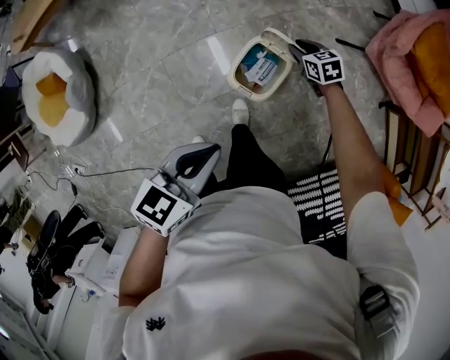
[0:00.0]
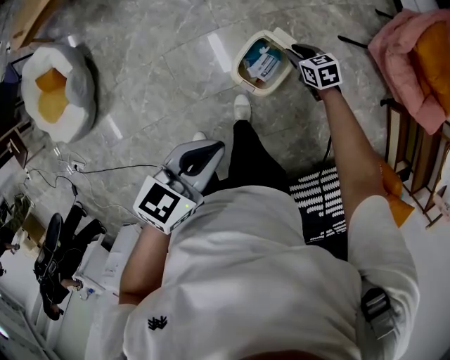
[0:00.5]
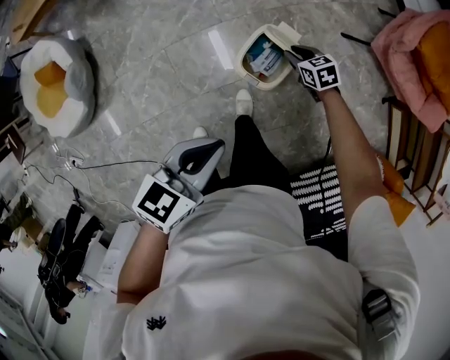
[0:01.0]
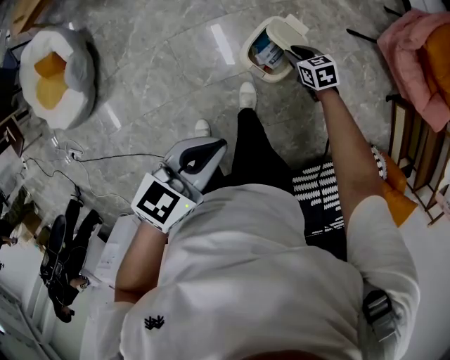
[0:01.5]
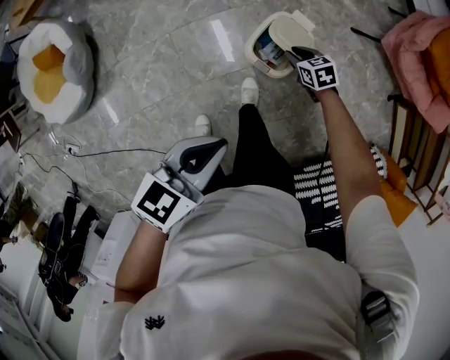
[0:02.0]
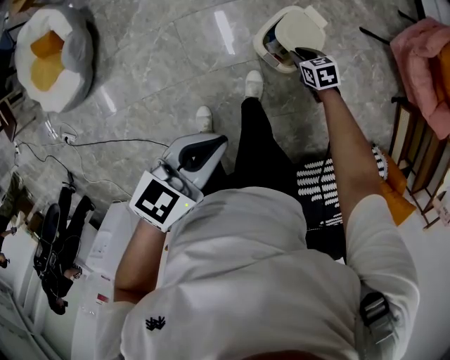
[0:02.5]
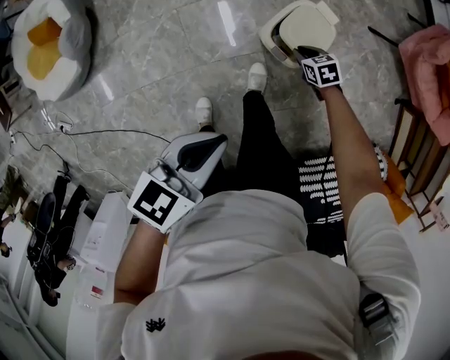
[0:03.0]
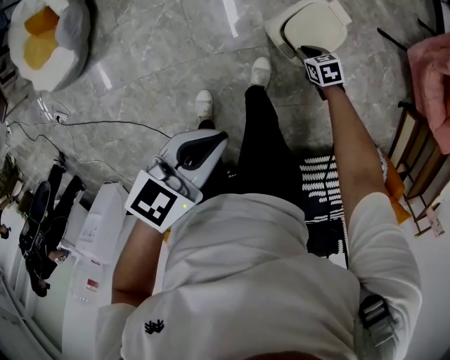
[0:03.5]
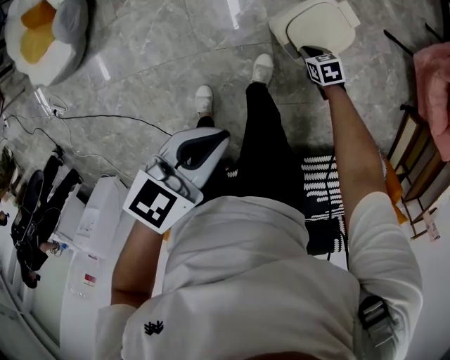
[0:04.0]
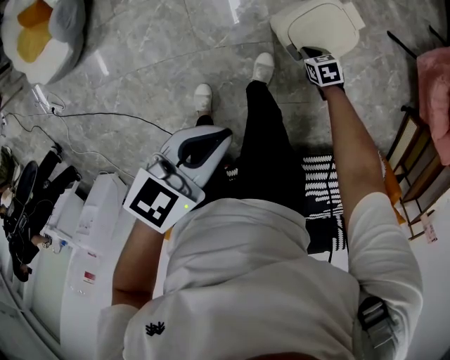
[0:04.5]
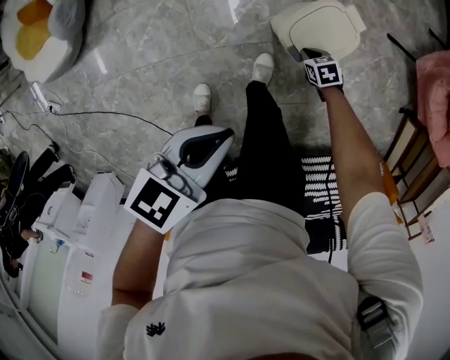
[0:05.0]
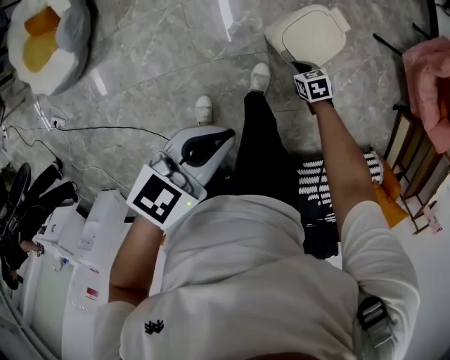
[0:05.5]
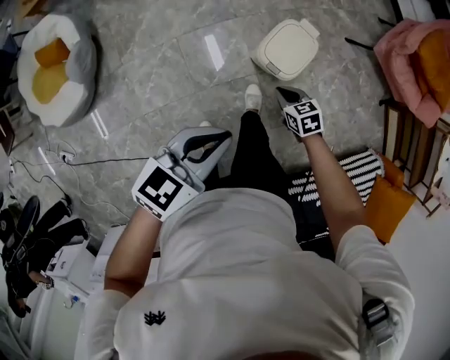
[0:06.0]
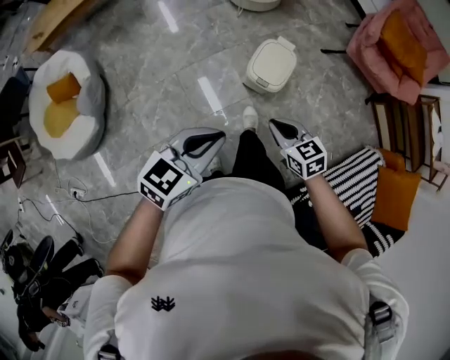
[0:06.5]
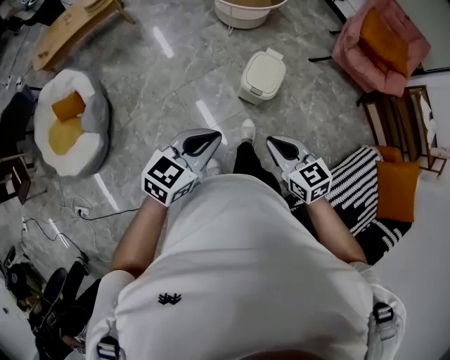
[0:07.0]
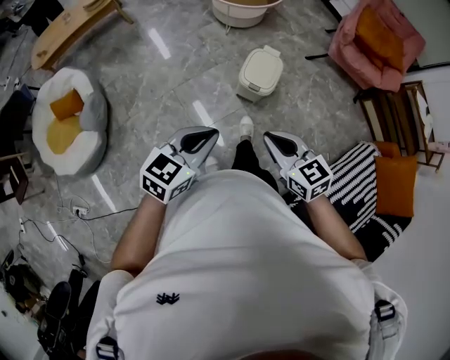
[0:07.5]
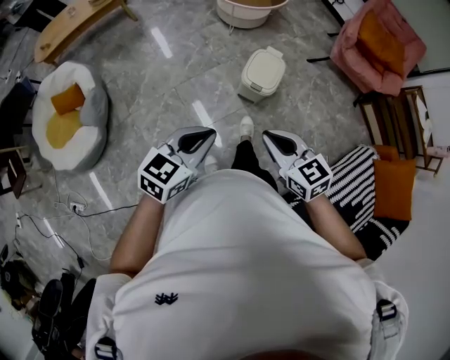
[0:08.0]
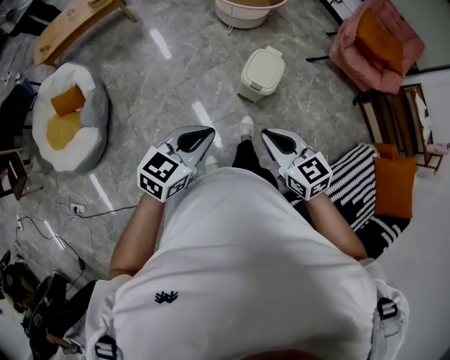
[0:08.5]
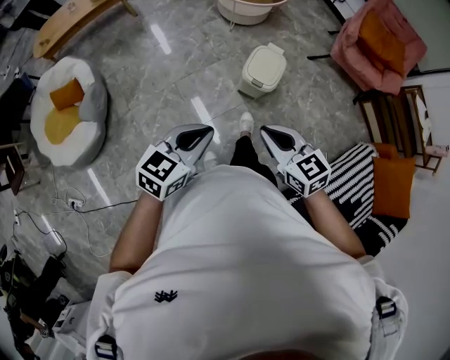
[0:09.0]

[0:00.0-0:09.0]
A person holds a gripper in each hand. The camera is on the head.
0:00.0 to 0:02.0: The right gripper heads backward and to the left, covering roughly 15 cm, while the left gripper moves backward, roughly 10 cm.
0:02.0 to 0:04.5: The right gripper moves downward, roughly 15 cm, and closes. The left gripper moves downward, approximately 10 cm.
0:04.5 to 0:07.0: The left gripper goes about 20 cm upward, and turns by some 40 degrees, while the right gripper is displaced upward by approximately 50 cm, and points its fingers some 40 degrees further upward.
0:07.0 to 0:09.0: The left gripper moves roughly 5 cm; the right gripper ends up approximately 5 cm from where it was.

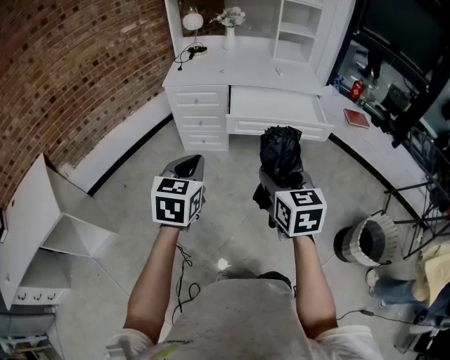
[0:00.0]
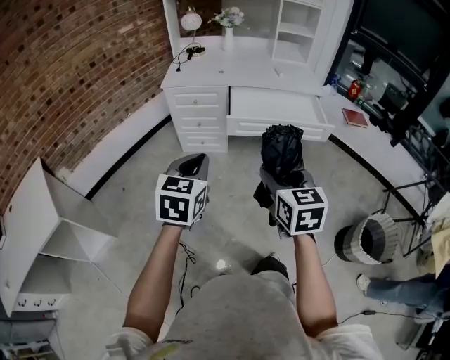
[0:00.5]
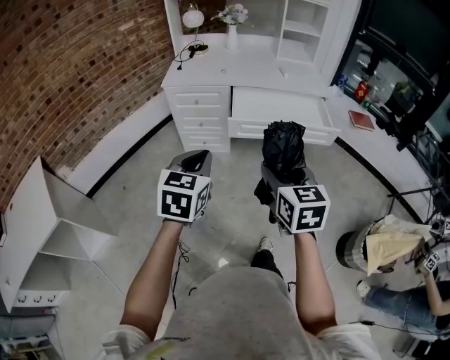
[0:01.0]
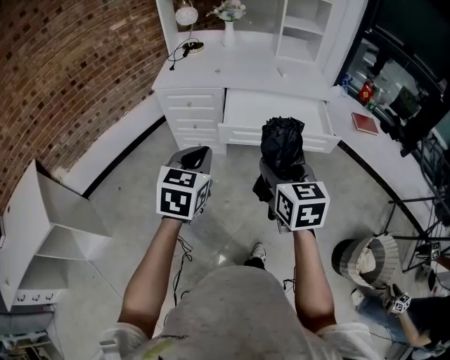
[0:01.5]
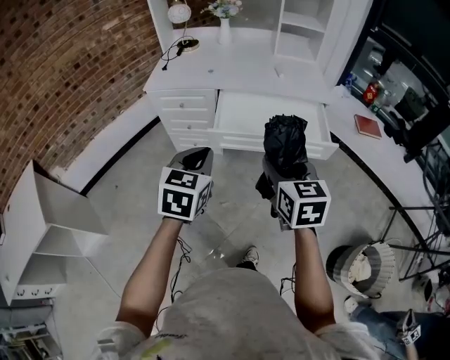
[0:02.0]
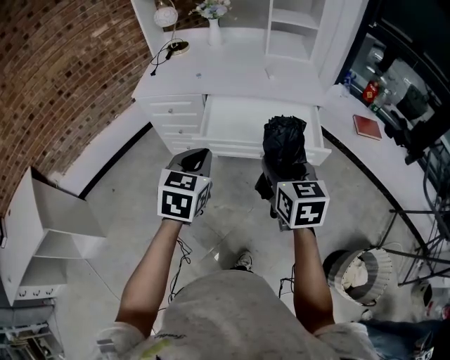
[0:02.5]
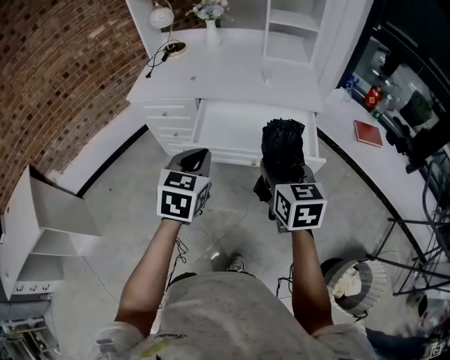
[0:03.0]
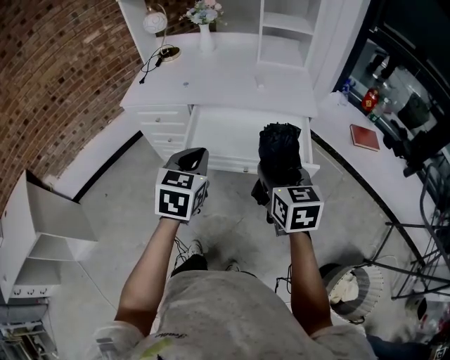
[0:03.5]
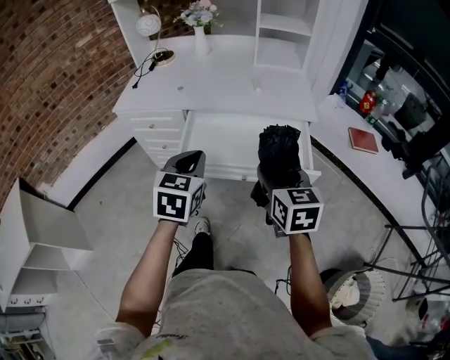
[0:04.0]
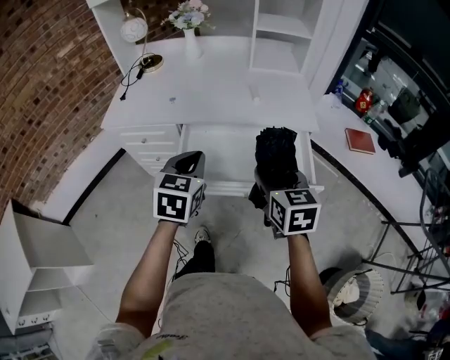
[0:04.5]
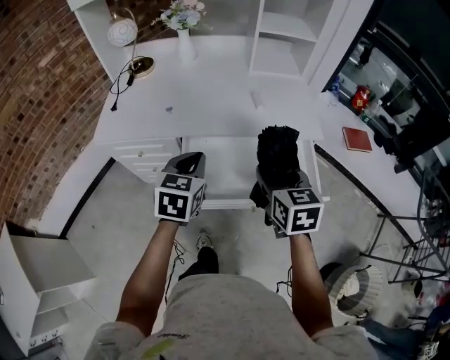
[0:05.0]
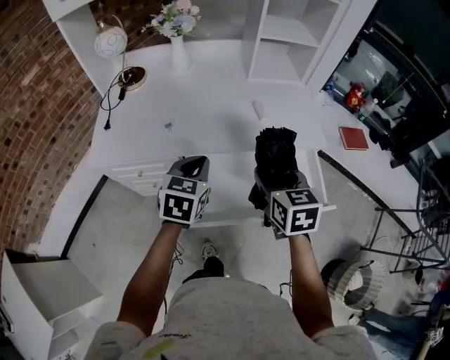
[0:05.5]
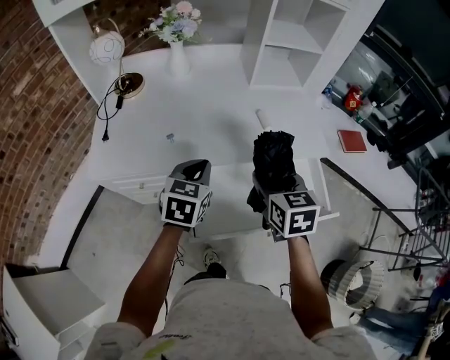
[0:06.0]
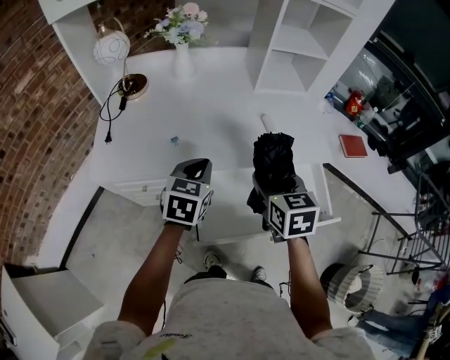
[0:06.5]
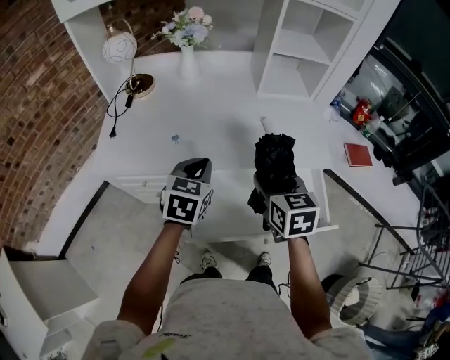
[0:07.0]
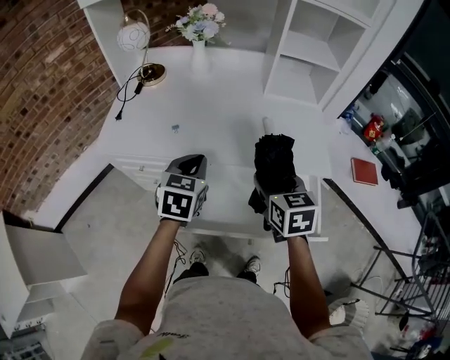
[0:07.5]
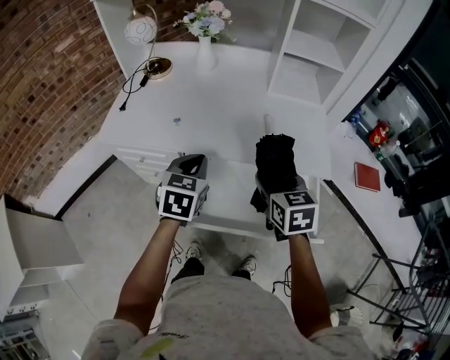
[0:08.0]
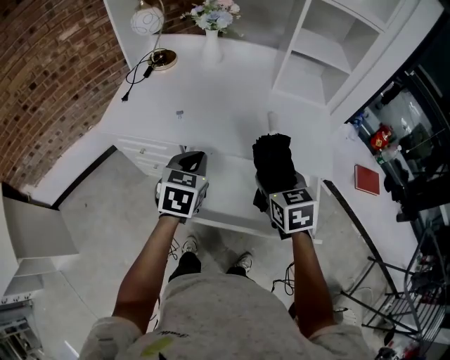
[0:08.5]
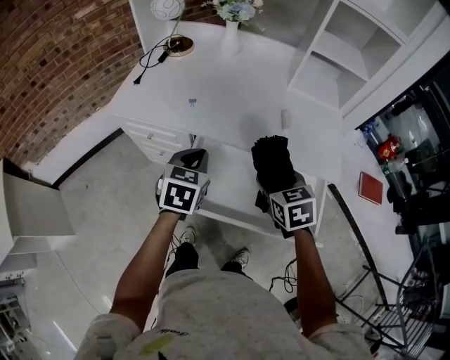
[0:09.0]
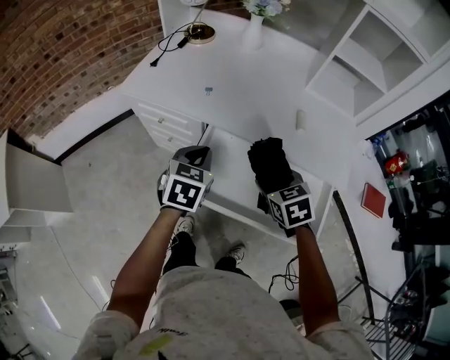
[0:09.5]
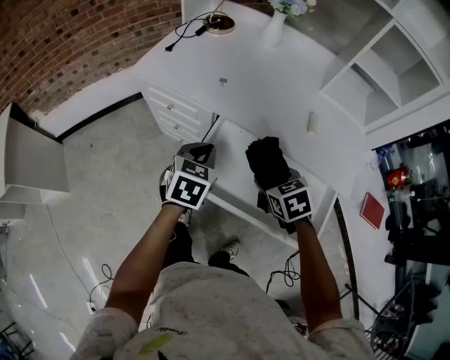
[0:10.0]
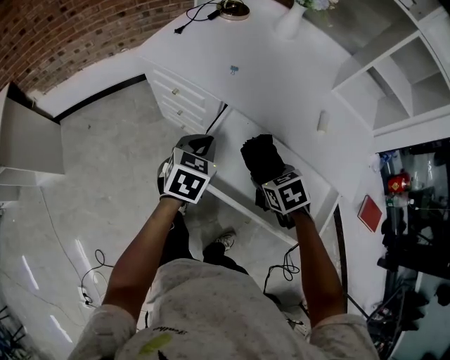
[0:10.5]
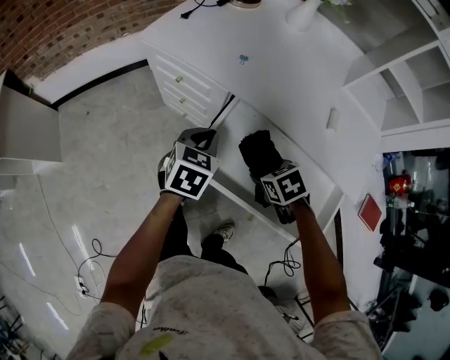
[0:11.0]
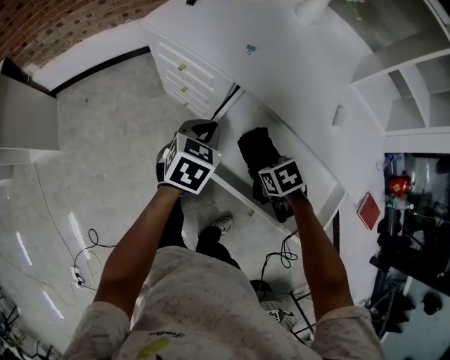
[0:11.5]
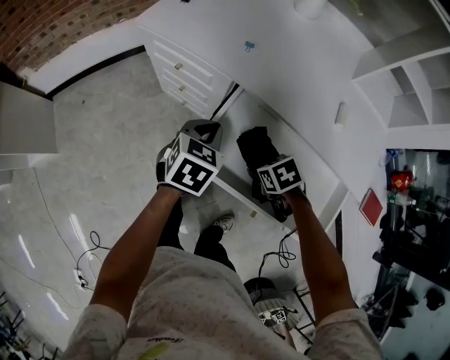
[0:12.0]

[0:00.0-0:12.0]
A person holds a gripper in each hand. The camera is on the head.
0:00.0 to 0:02.0: The grippers both shift forward and to the right by some 20 cm.
0:02.0 to 0:04.0: The right gripper shifts some 20 cm forward, to the right and downward. Meanwhile the left gripper heads forward and to the right, covering roughly 20 cm.
0:04.0 to 0:06.0: The left gripper is displaced forward by roughly 30 cm. Meanwhile the right gripper heads forward and to the left, covering some 30 cm.
0:06.0 to 0:08.0: The right gripper goes roughly 5 cm to the right; the left gripper changes place by about 5 cm.
0:08.0 to 0:10.0: The right gripper moves downward and to the left, roughly 15 cm, and turns by roughly 40 degrees; the left gripper moves to the left and downward, about 10 cm.
0:10.0 to 0:12.0: The left gripper shifts about 5 cm downward. Meanwhile the right gripper heads downward, covering some 15 cm, and changes its angle by roughly 20 degrees.

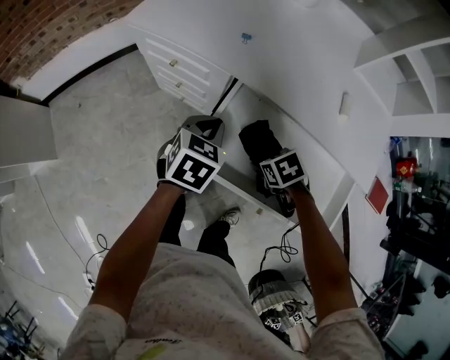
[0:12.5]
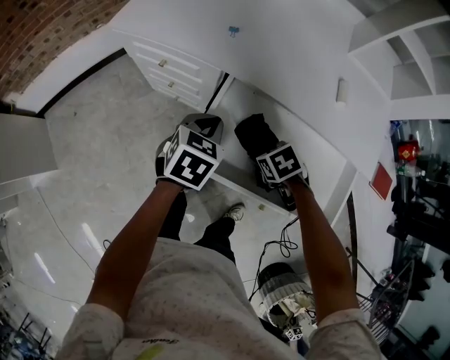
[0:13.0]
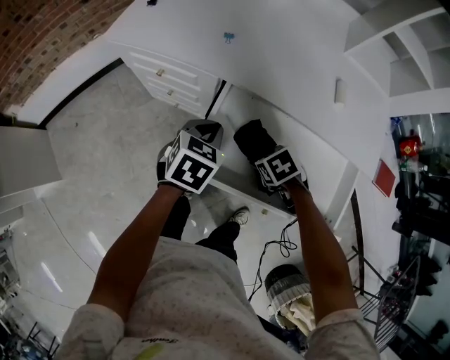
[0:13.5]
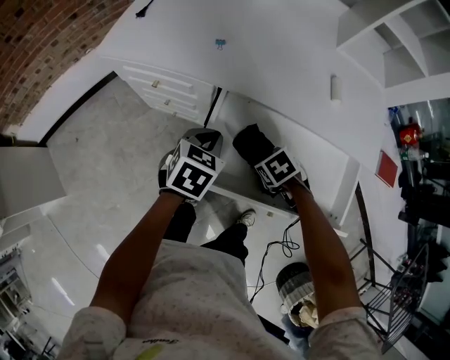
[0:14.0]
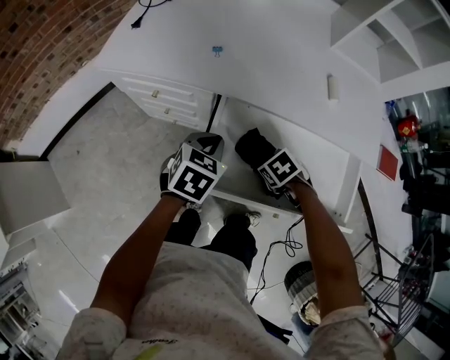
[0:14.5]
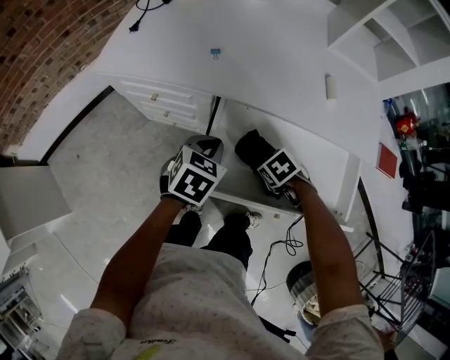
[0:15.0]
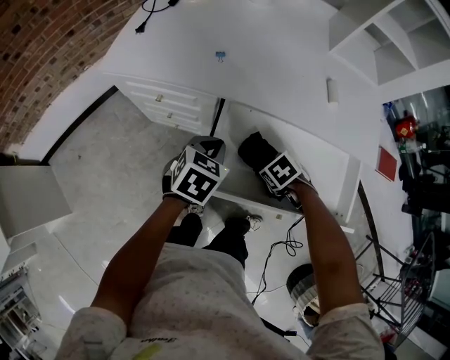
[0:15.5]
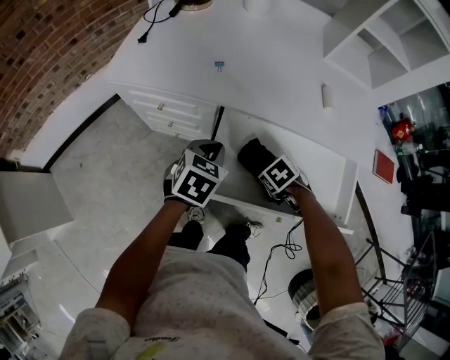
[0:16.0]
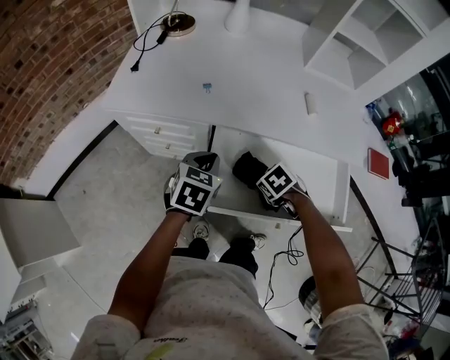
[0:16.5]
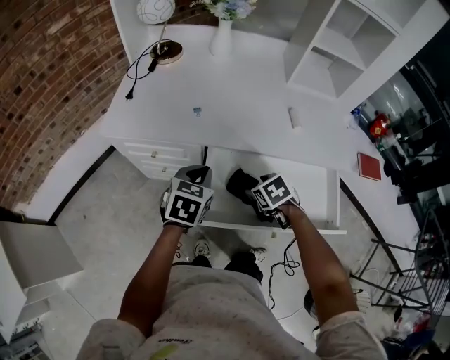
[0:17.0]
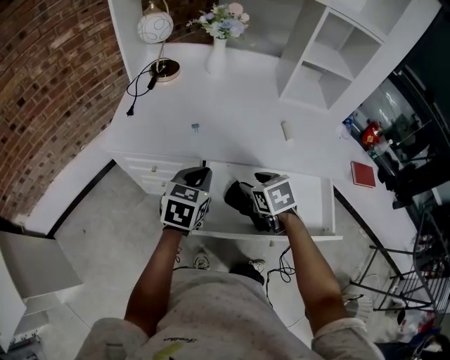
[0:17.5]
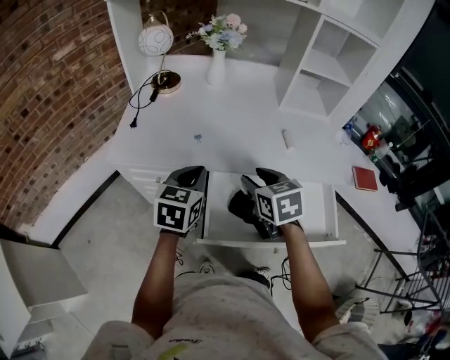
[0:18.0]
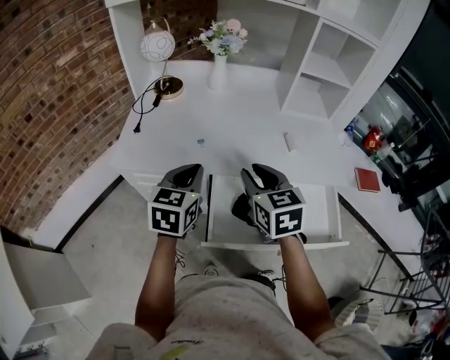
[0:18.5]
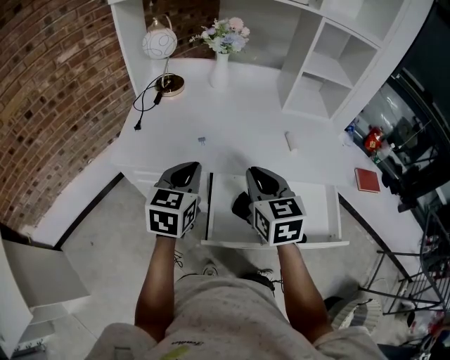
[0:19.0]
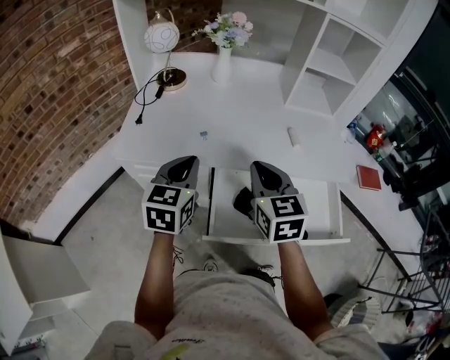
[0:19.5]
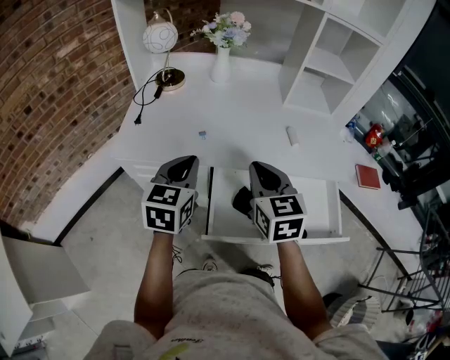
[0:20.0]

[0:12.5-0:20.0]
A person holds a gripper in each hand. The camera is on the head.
0:12.5 to 0:16.5: The grippers move only a little.
0:16.5 to 0:18.0: The right gripper heads upward, covering about 25 cm, and tilts its fingers approximately 40 degrees upward, while the left gripper is displaced upward by roughly 10 cm.
0:18.0 to 0:20.0: The left gripper ends up roughly 5 cm from where it was; the right gripper shifts some 5 cm upward, and closes its fingers.
